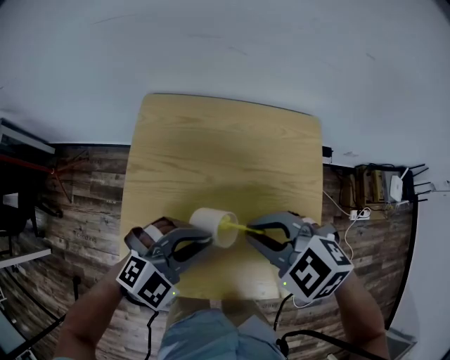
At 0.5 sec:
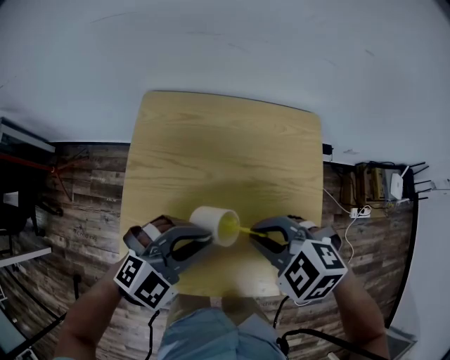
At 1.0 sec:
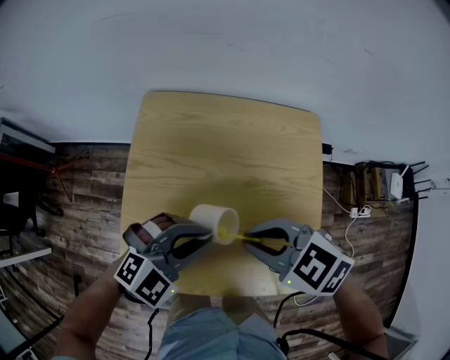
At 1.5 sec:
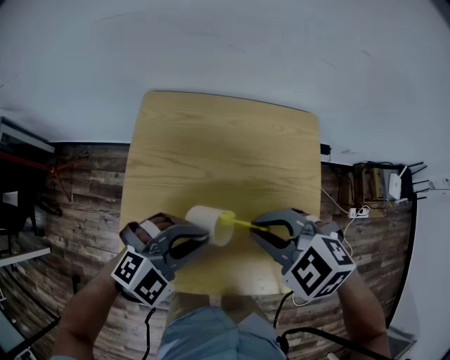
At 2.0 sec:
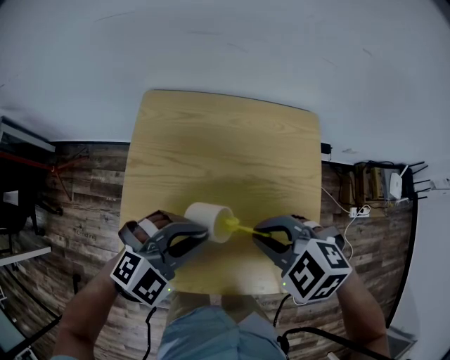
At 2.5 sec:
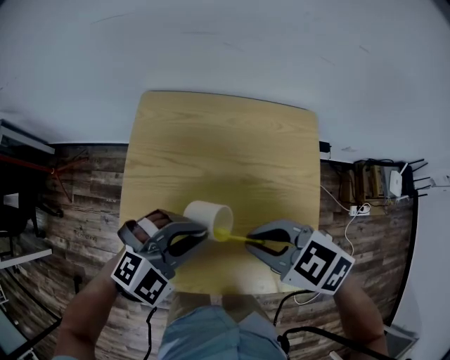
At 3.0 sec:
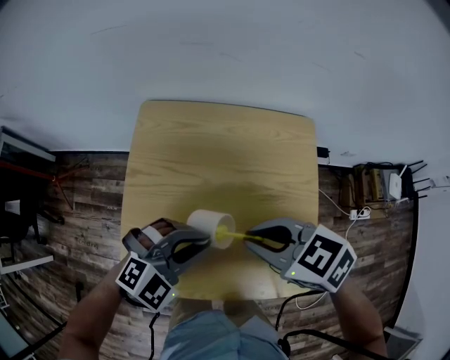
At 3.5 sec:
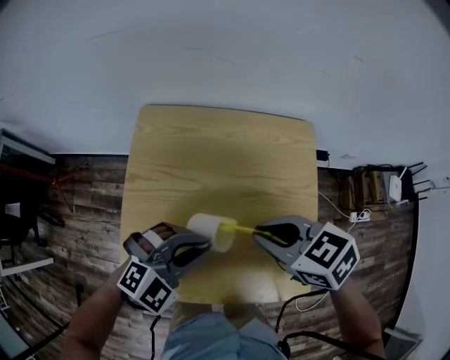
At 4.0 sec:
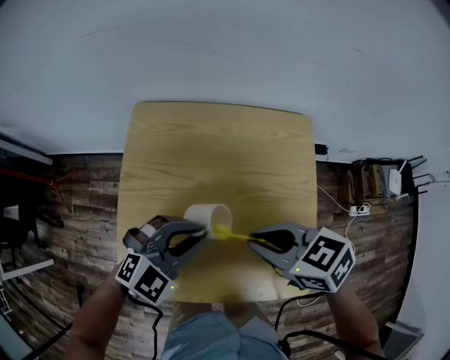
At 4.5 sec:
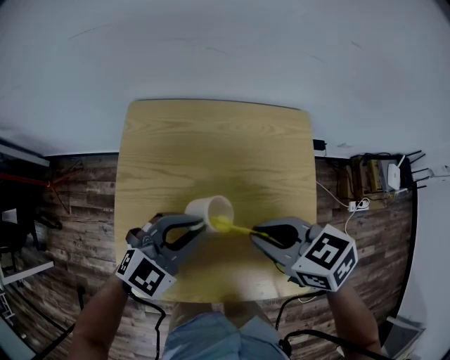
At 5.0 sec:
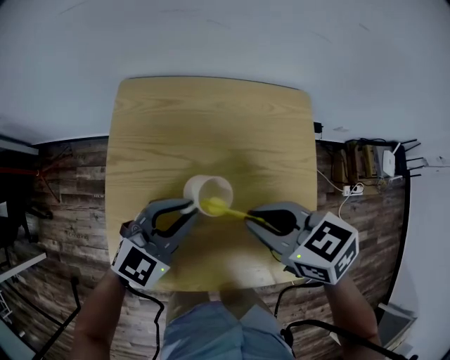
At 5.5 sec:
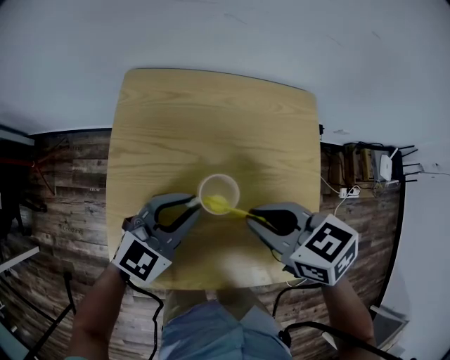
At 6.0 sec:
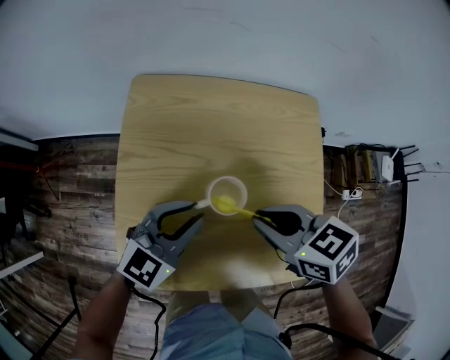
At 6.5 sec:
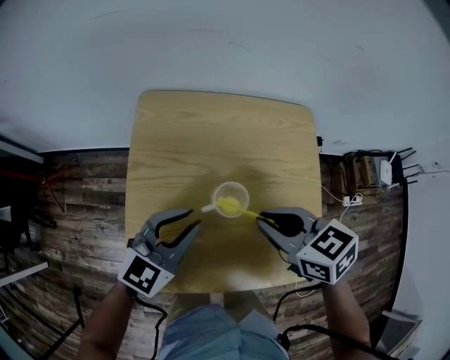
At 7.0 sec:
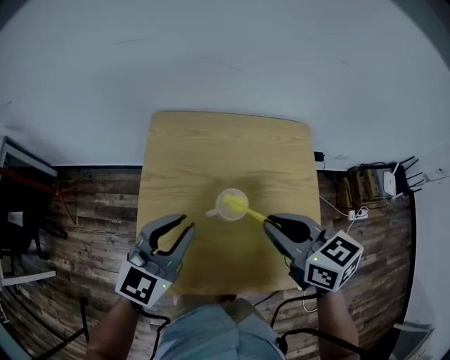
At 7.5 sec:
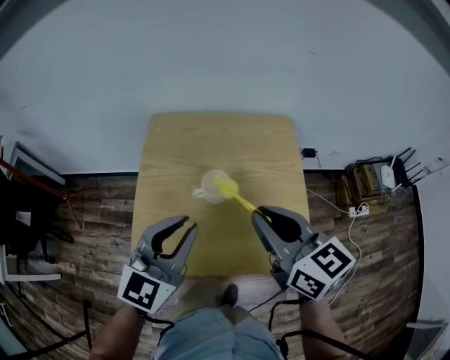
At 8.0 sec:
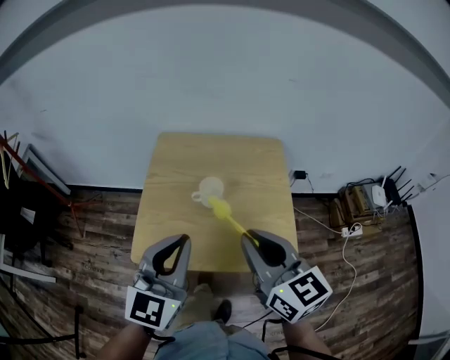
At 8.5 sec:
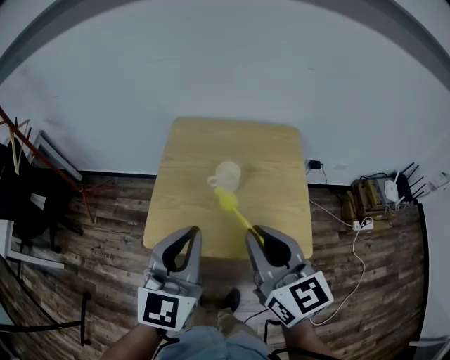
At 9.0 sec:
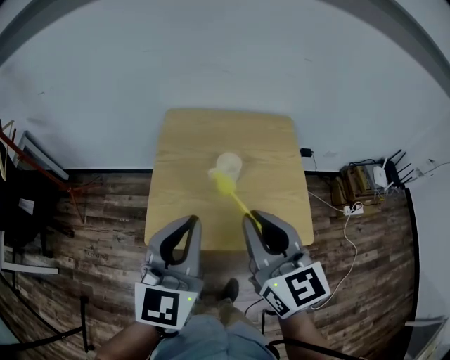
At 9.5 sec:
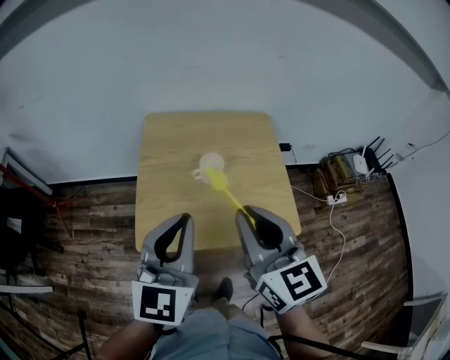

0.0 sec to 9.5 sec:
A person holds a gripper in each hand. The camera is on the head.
0.0 sec to 2.0 sec: The grippers move only a little.
2.0 sec to 4.0 sec: The right gripper changes its angle by about 40 degrees.
4.0 sec to 5.5 sec: The left gripper swivels roughly 20 degrees.
5.5 sec to 7.5 sec: The grippers both shift upward and backward by roughly 15 cm. The right gripper rotates about 40 degrees.
7.5 sec to 9.5 sec: The left gripper moves backward and upward, roughly 10 cm. The right gripper goes about 15 cm backward, to the left and upward, and changes its angle by some 20 degrees.

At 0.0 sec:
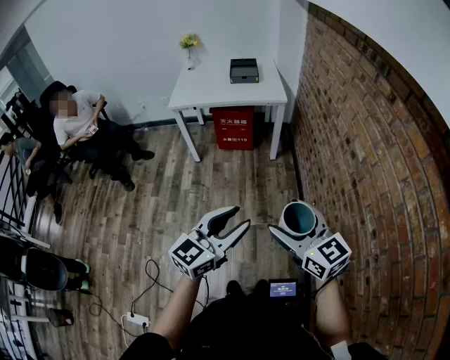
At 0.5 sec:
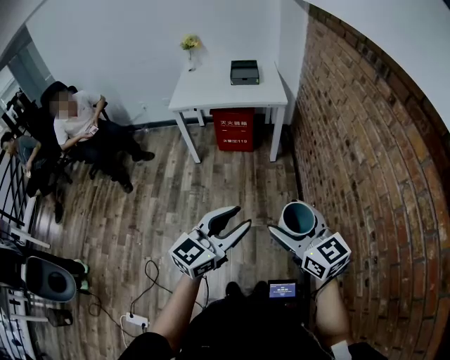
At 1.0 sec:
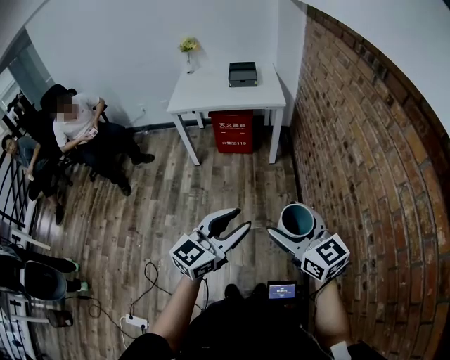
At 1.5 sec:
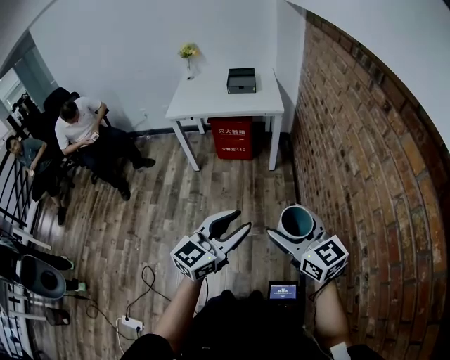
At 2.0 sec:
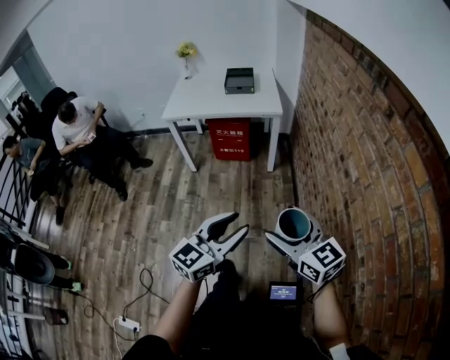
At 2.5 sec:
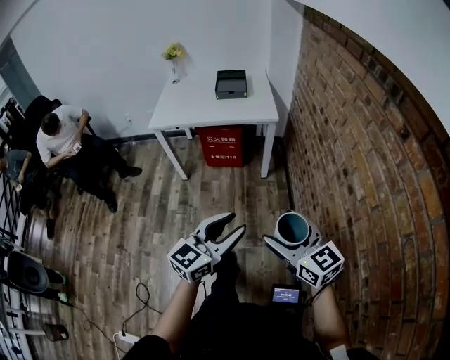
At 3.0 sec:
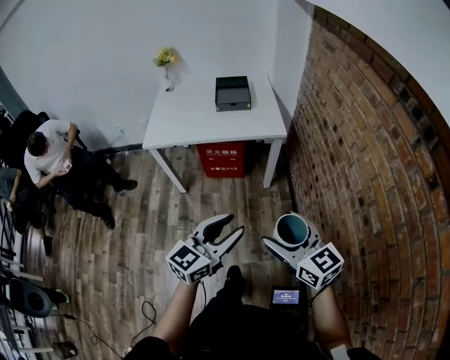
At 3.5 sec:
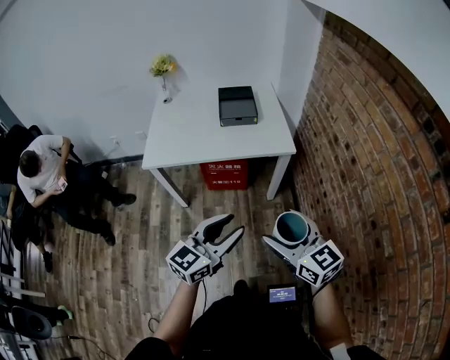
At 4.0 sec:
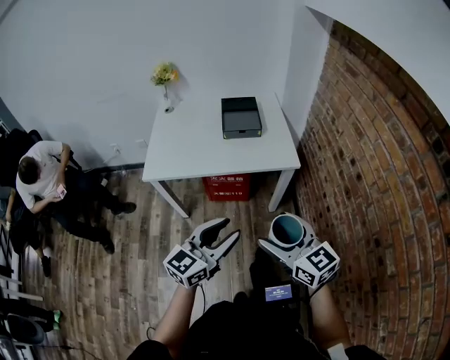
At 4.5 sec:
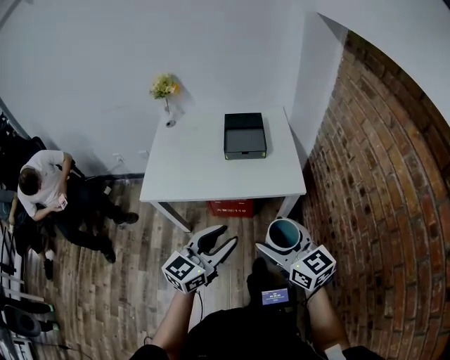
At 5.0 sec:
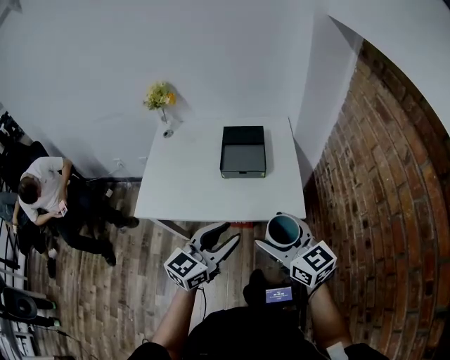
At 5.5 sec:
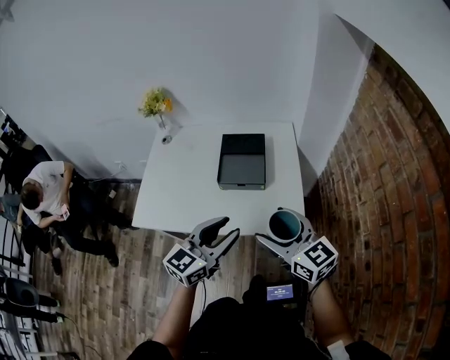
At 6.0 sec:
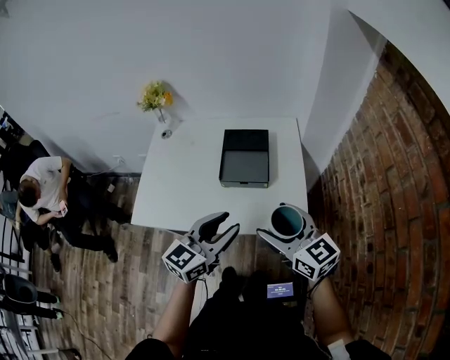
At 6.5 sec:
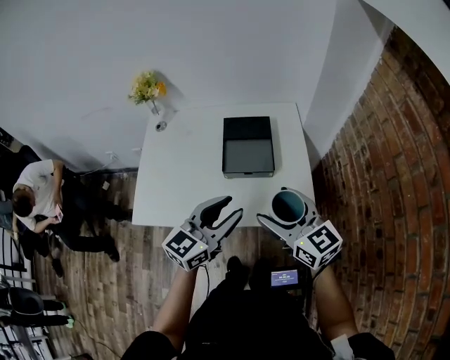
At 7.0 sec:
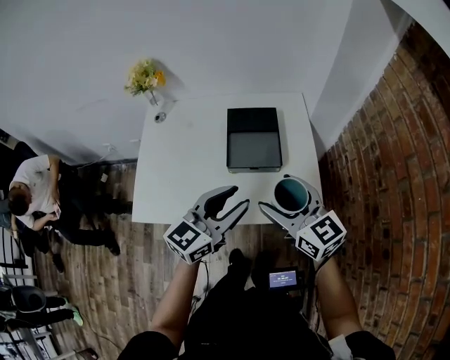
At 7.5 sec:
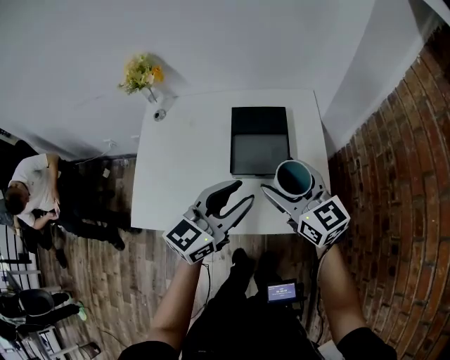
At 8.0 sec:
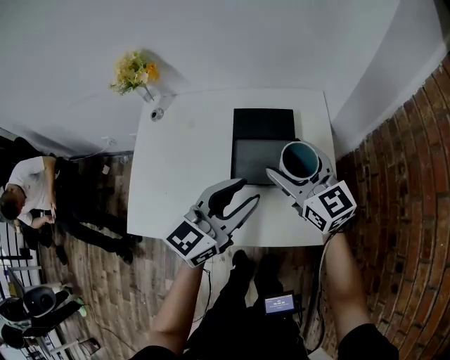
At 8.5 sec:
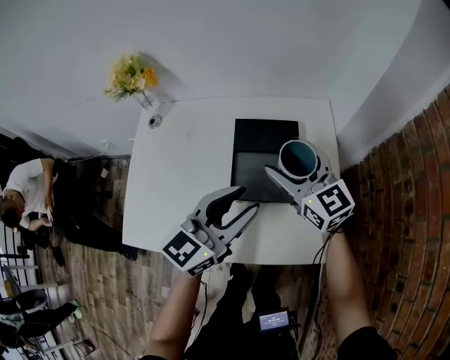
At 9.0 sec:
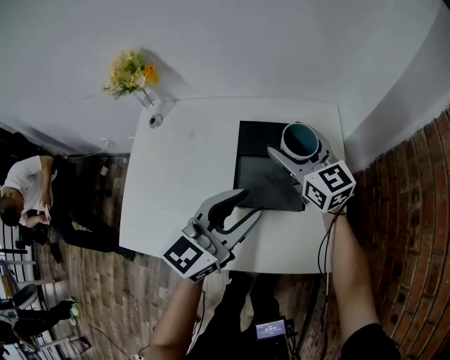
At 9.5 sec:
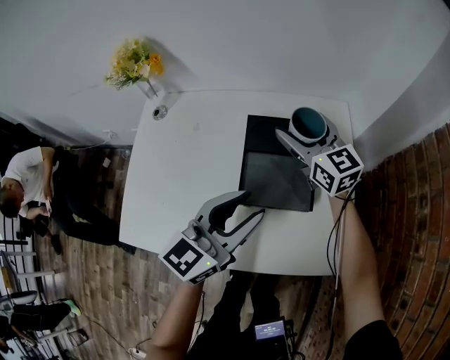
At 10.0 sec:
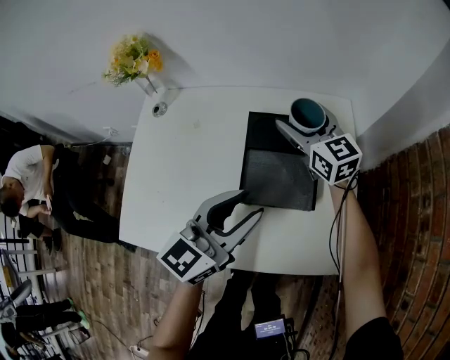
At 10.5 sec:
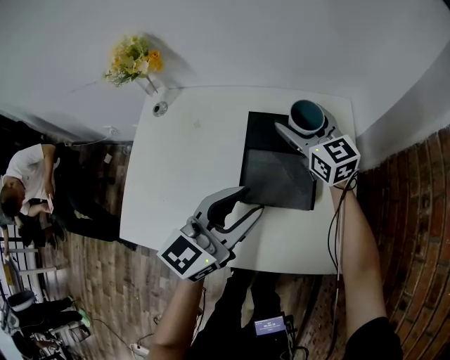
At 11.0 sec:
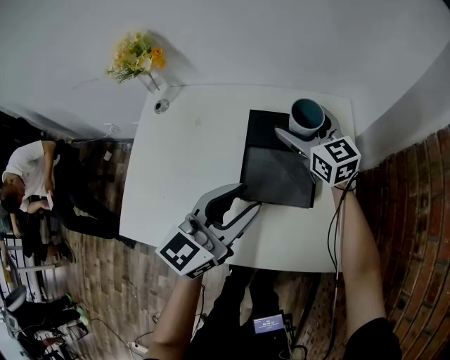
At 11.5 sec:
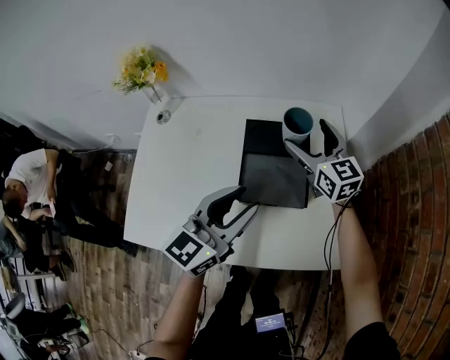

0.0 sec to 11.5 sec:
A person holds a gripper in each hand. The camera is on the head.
0.0 sec to 2.0 sec: The grippers both shift forward and to the right by approximately 10 cm.
2.0 sec to 4.0 sec: The pair of grippers is taken forward and to the left, some 40 cm.
4.0 sec to 6.0 sec: Both grippers travel together forward, about 35 cm.
6.0 sec to 7.5 sec: The left gripper goes roughly 10 cm forward. The right gripper heads forward and to the left, covering roughly 15 cm.
7.5 sec to 9.5 sec: The right gripper travels forward by about 25 cm; the left gripper heads forward and downward, covering about 10 cm.
9.5 sec to 11.5 sec: The grippers make only small movements.

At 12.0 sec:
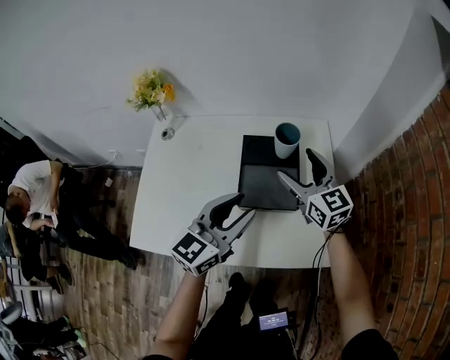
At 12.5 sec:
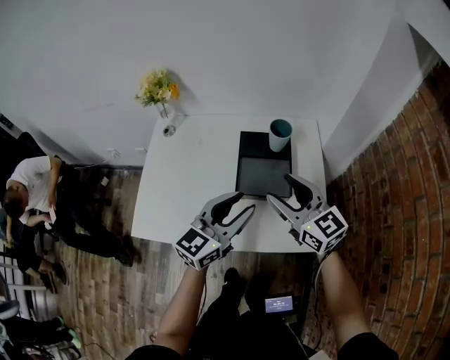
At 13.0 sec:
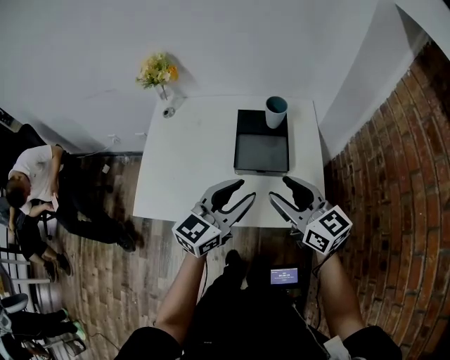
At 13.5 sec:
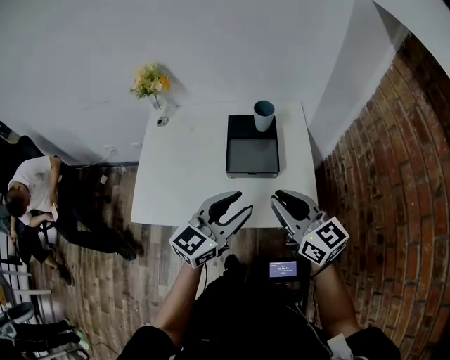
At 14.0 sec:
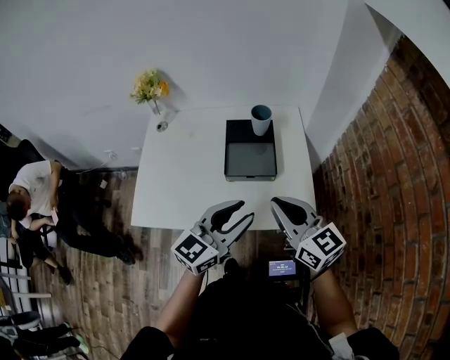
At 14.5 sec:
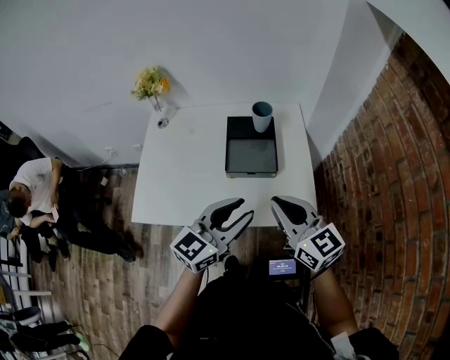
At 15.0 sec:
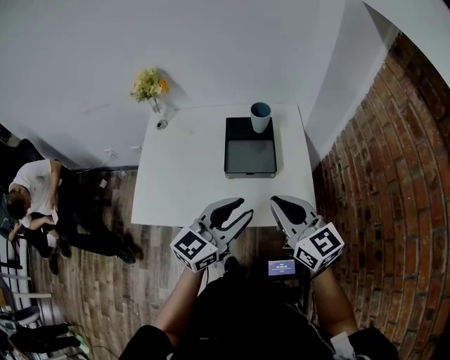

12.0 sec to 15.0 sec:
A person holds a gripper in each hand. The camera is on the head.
12.0 sec to 13.5 sec: The right gripper moves backward, about 25 cm, and closes, while the left gripper is displaced backward by some 15 cm.
13.5 sec to 15.0 sec: The grippers stay close to where they were, moving slightly.

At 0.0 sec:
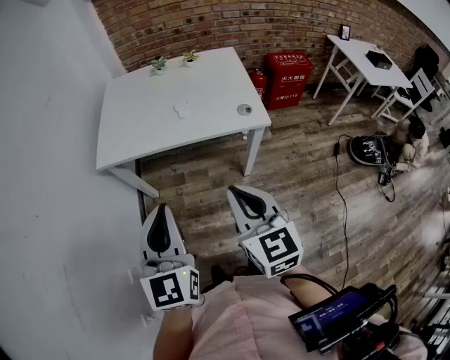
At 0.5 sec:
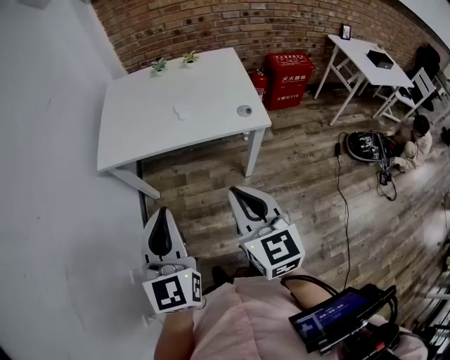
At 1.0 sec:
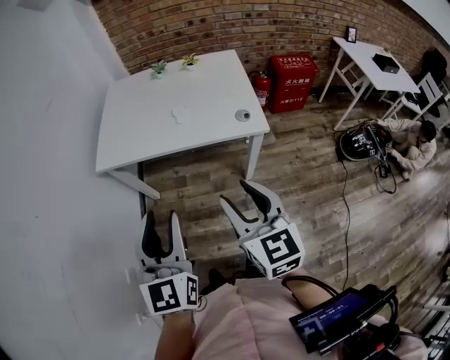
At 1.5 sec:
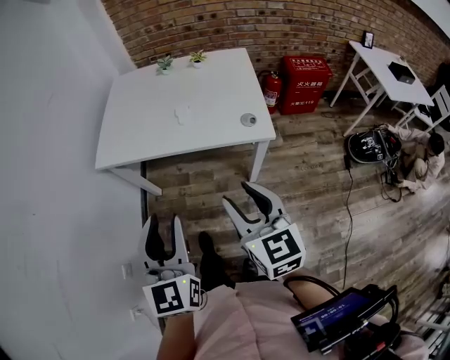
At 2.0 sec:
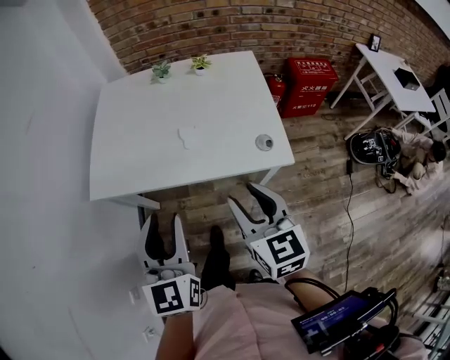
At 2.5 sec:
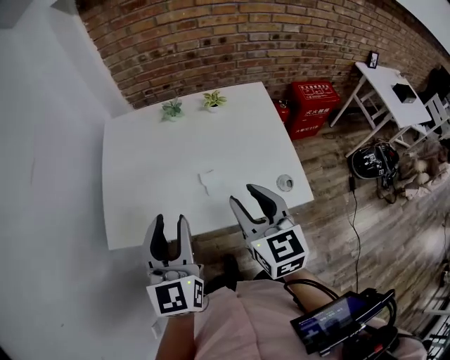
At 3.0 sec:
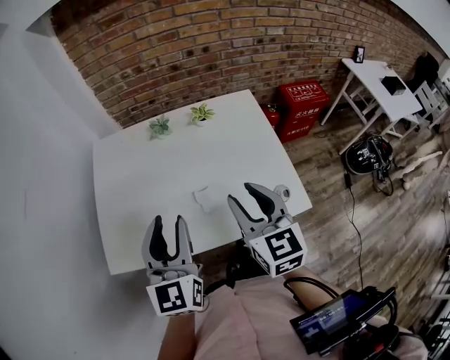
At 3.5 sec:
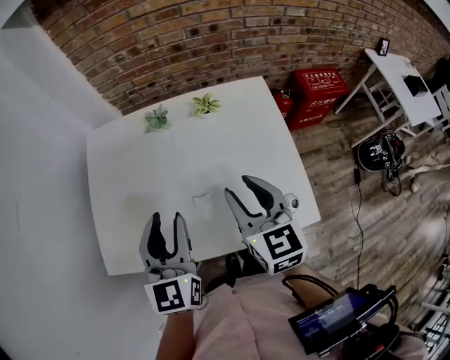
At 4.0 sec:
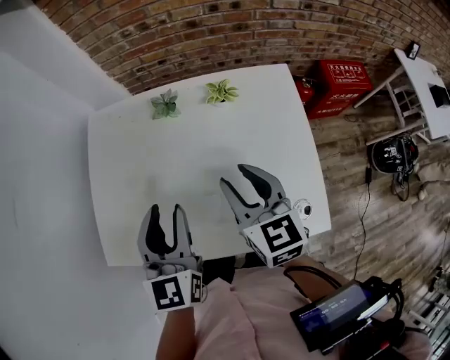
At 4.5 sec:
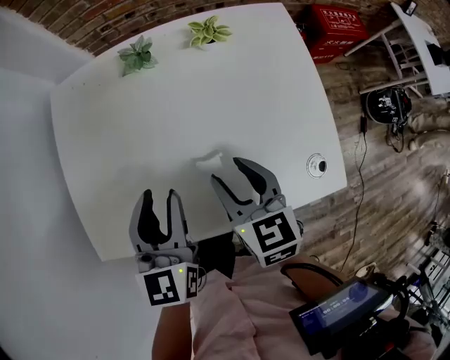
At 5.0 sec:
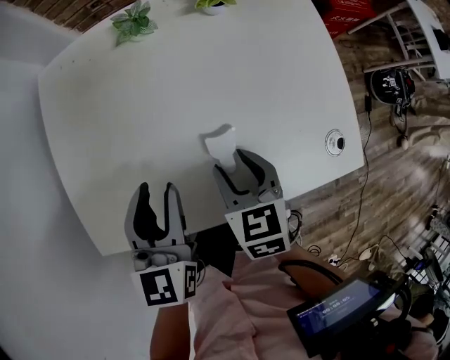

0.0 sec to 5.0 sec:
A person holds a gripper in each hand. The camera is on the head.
0.0 sec to 2.5 sec: Both grippers move forward, roughly 35 cm. The left gripper opens. The right gripper opens its fingers.
2.5 sec to 5.0 sec: Both grippers travel together downward and forward, approximately 25 cm. The left gripper turns by about 20 degrees; the right gripper swivels some 30 degrees.
